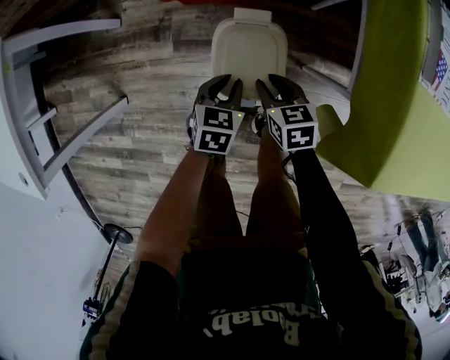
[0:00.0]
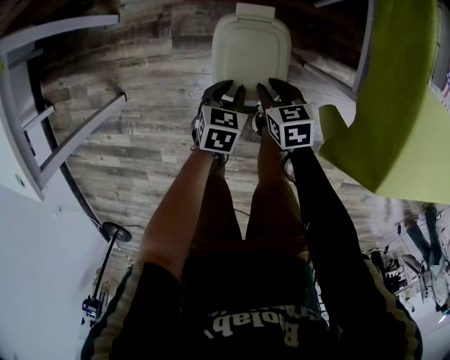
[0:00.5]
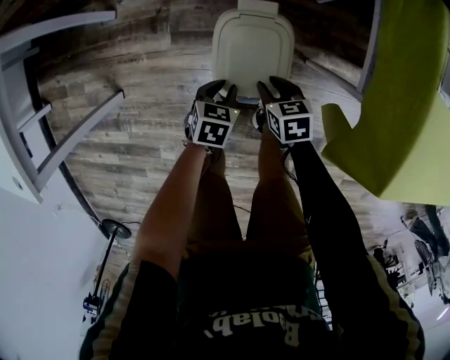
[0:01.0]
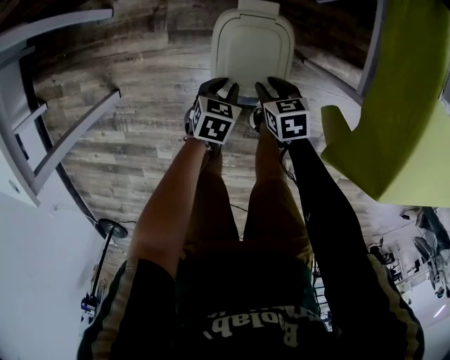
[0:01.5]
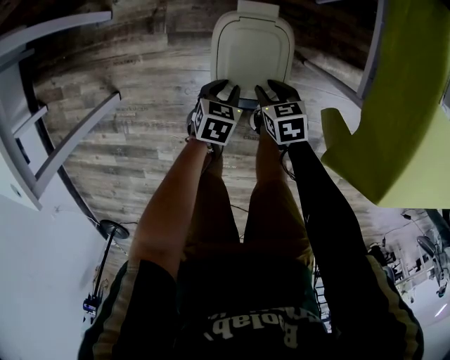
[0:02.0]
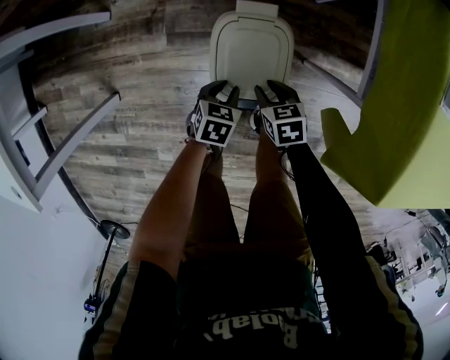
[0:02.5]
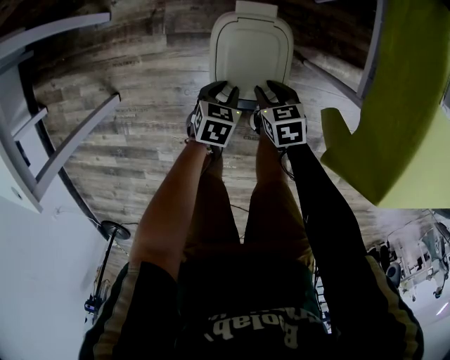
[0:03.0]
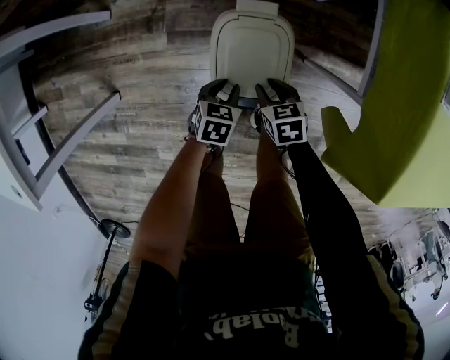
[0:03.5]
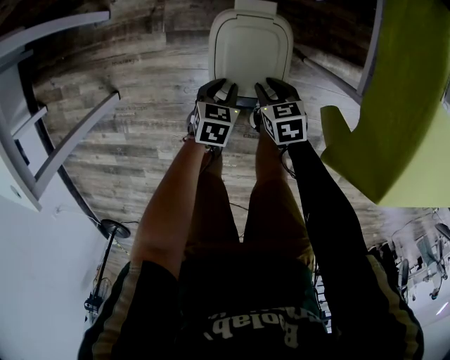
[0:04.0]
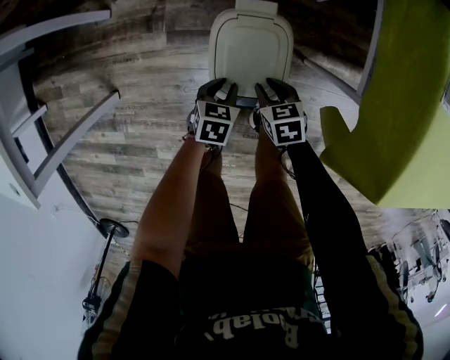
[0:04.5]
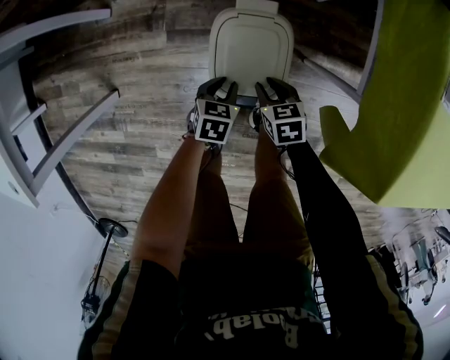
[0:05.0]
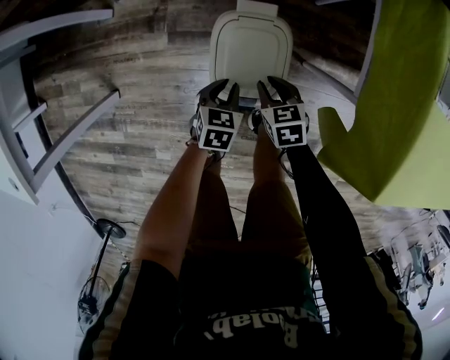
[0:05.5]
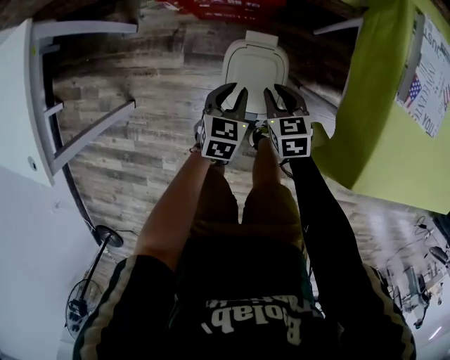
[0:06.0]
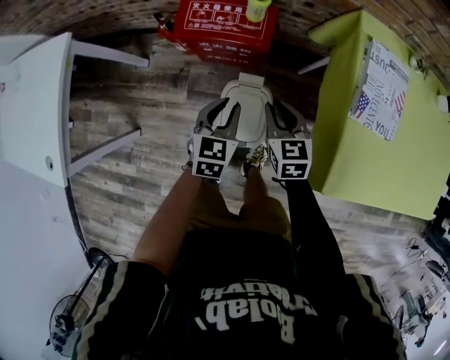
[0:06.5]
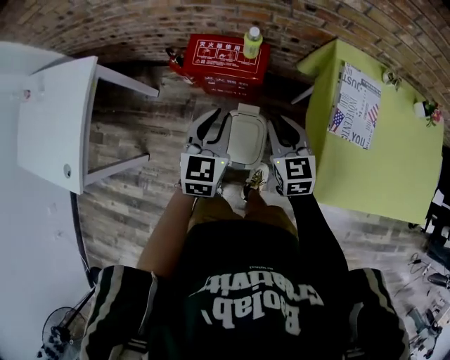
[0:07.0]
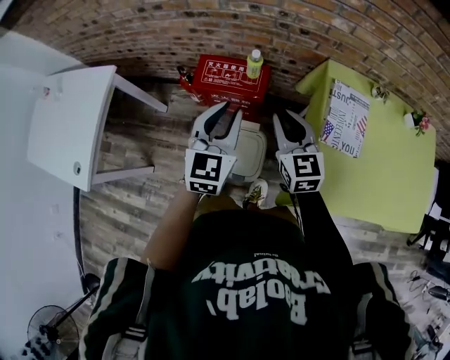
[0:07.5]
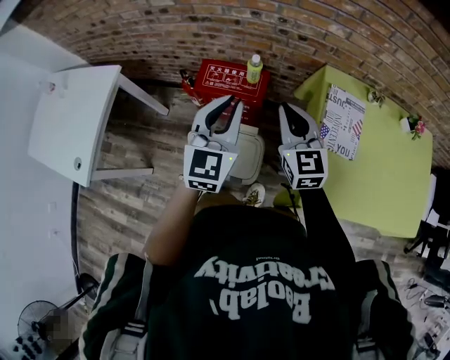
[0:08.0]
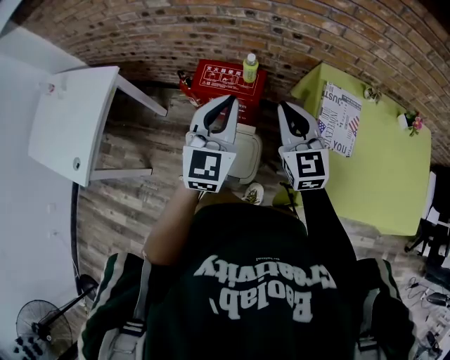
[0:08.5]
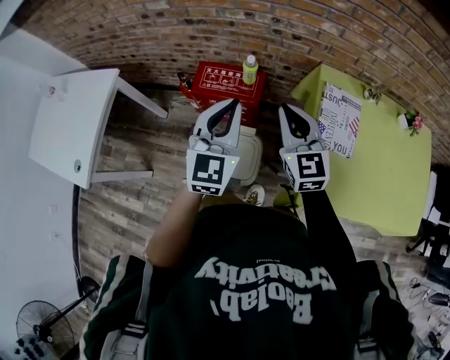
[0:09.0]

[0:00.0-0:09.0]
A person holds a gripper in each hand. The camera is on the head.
0:00.0 to 0:02.0: Both grippers travel together downward, approximately 10 cm.
0:02.0 to 0:04.5: Neither gripper changes place.
0:04.5 to 0:07.0: The two grippers go roughly 50 cm upward. The right gripper tips its fingers upward by about 30 degrees, while the left gripper points its fingers approximately 40 degrees further upward.
0:07.0 to 0:09.0: The two grippers go about 15 cm upward. The right gripper turns by roughly 20 degrees; the left gripper rotates some 20 degrees.

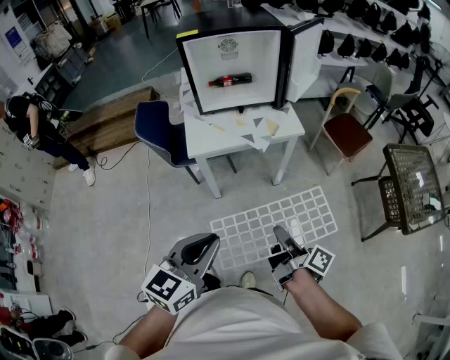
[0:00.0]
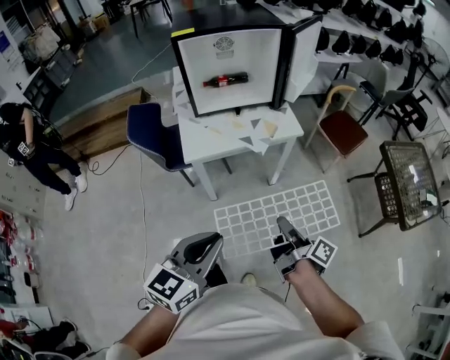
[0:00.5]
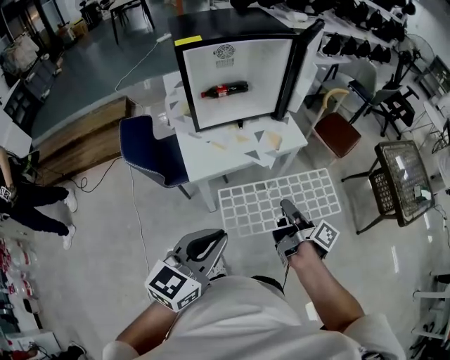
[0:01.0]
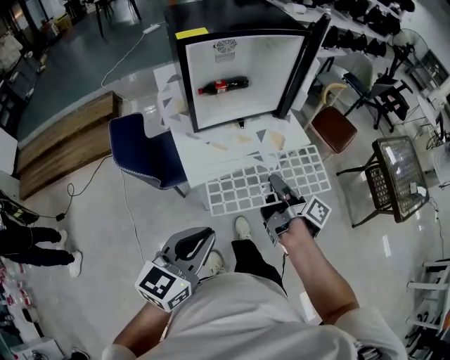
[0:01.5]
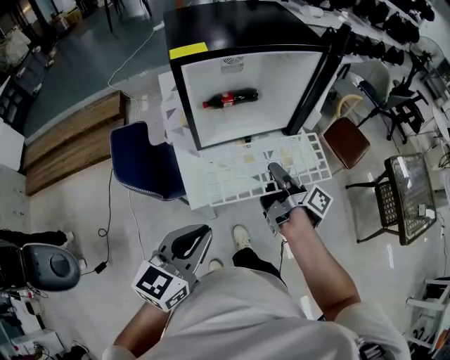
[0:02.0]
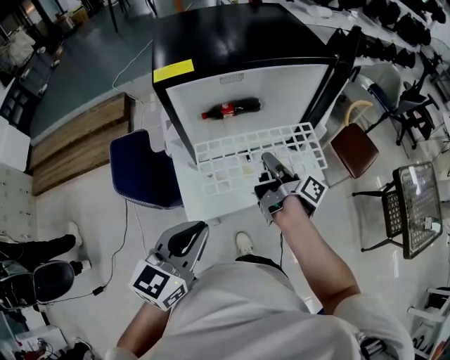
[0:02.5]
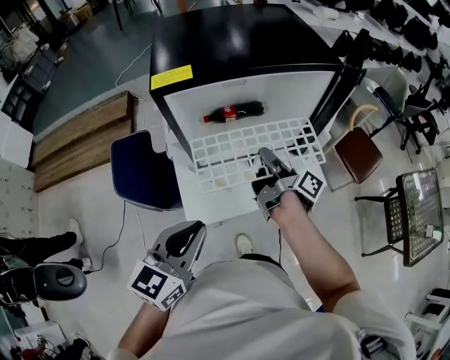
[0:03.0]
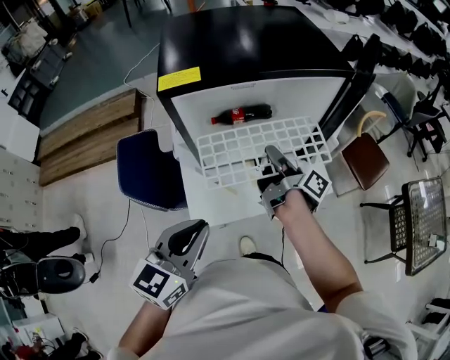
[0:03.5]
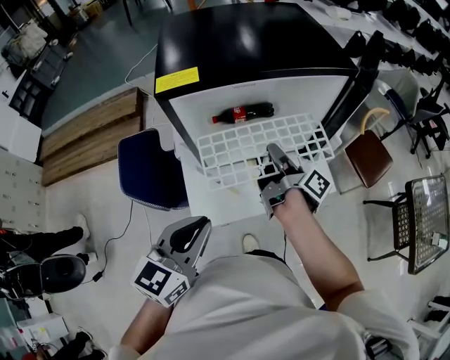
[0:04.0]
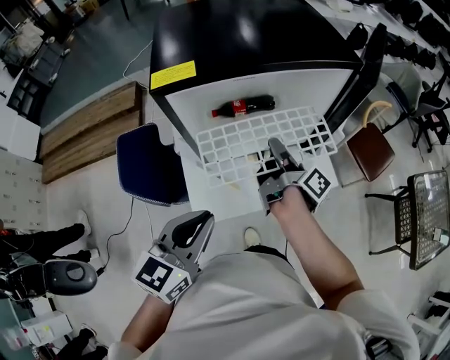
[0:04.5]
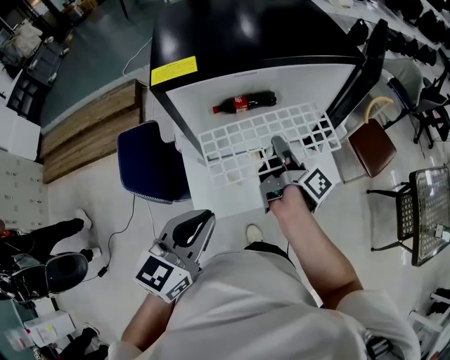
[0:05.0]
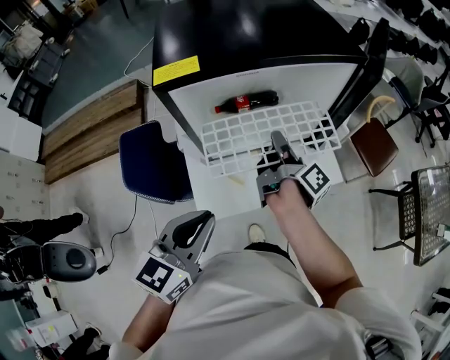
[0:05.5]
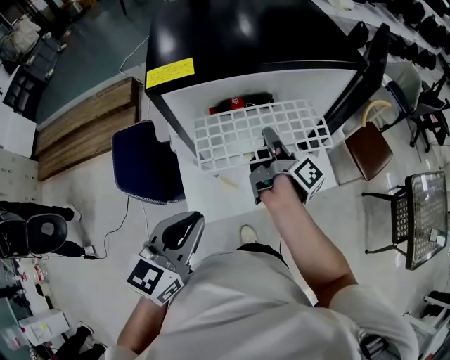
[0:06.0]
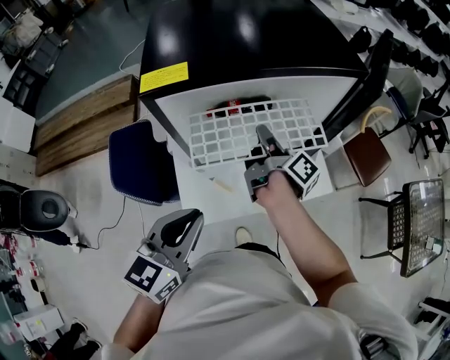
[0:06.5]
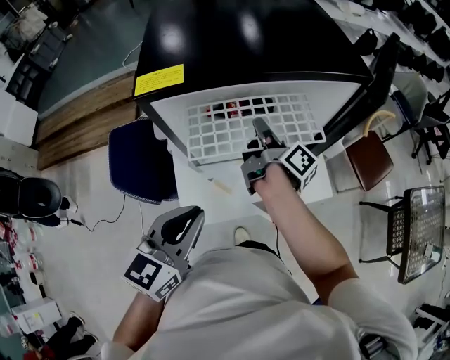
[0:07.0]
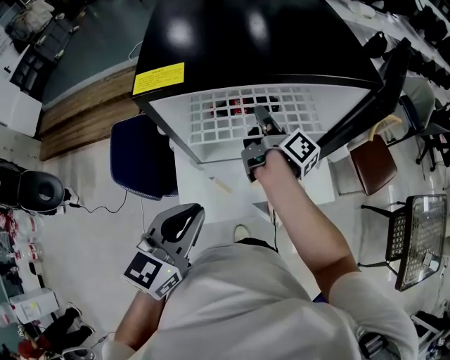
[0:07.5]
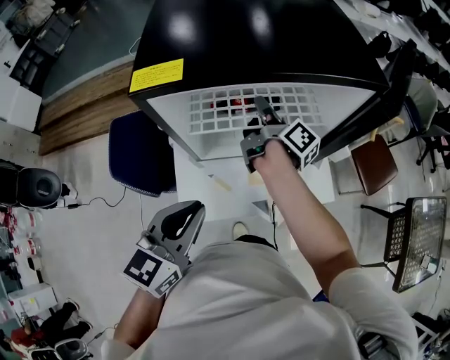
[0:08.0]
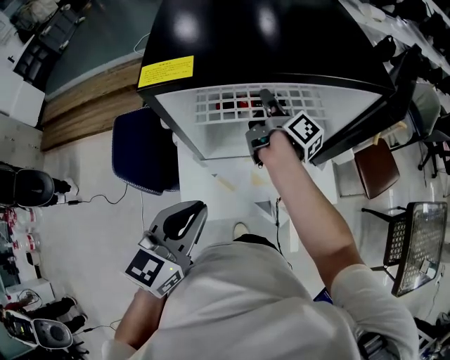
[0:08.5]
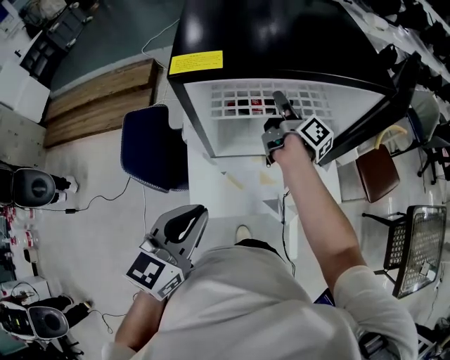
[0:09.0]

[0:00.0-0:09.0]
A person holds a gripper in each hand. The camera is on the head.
0:00.0 to 0:02.0: The left gripper moves about 30 cm.
0:02.0 to 0:04.5: The left gripper ends up roughly 15 cm from where it was.

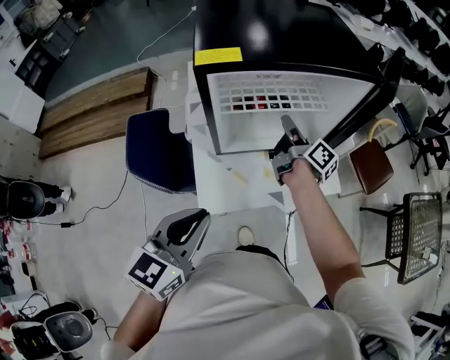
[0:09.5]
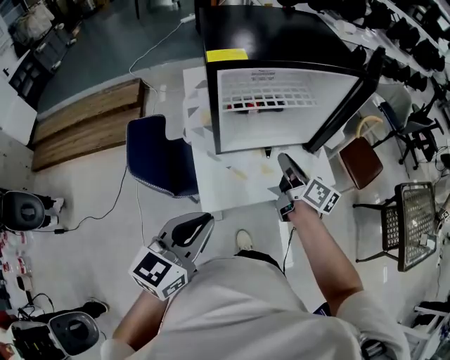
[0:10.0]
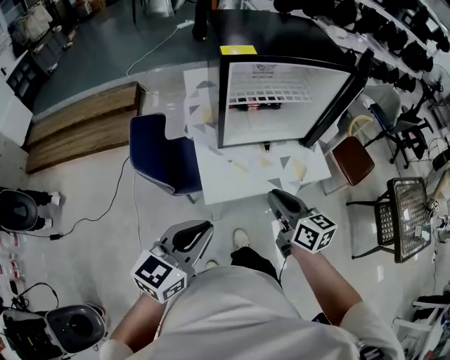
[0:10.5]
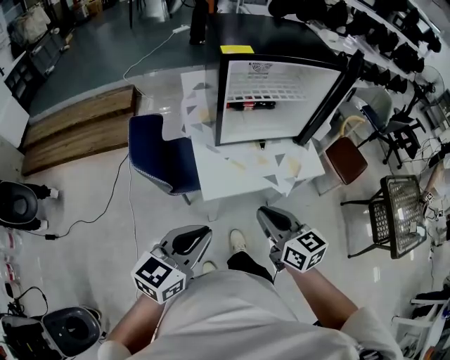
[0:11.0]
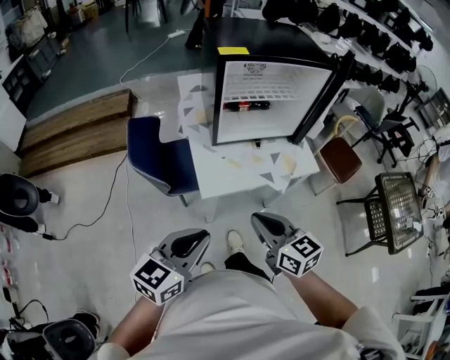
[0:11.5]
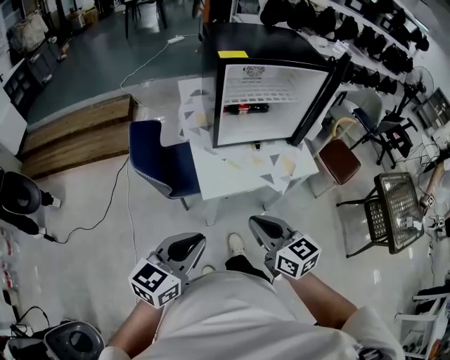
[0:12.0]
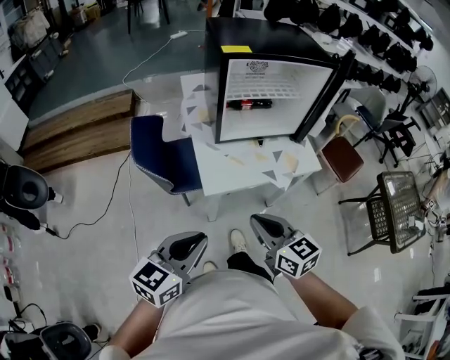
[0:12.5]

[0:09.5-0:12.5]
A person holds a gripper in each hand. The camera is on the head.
0:09.5 to 0:11.0: The left gripper changes place by roughly 15 cm.
0:11.0 to 0:12.5: The left gripper changes place by approximately 5 cm.

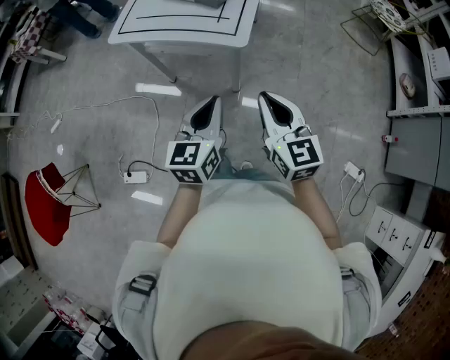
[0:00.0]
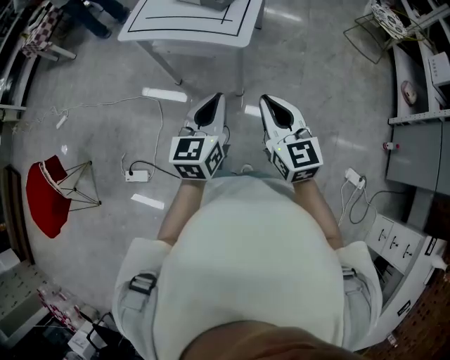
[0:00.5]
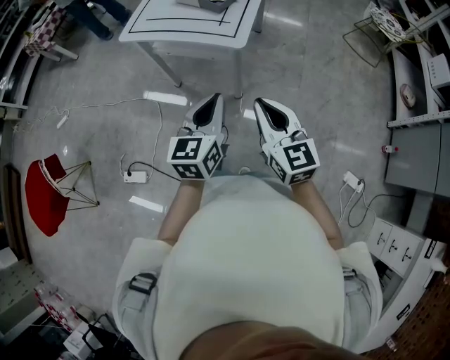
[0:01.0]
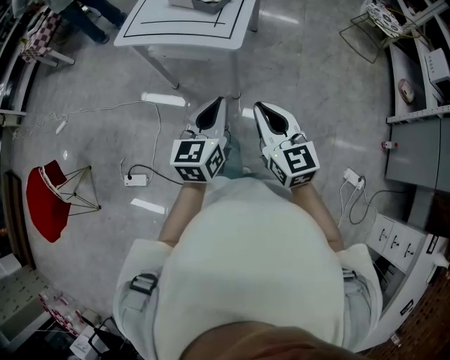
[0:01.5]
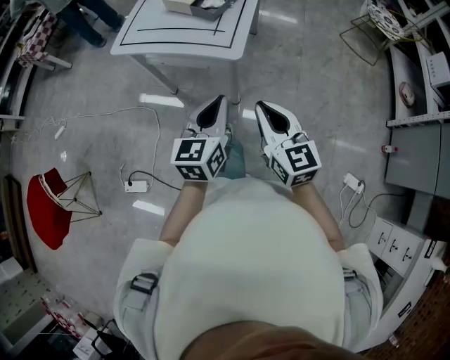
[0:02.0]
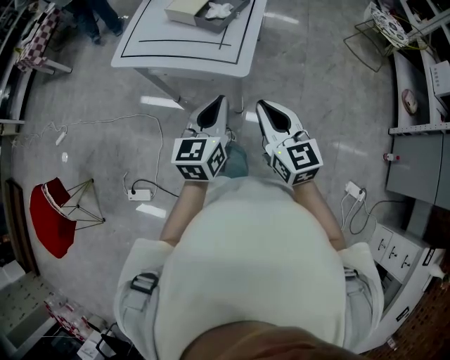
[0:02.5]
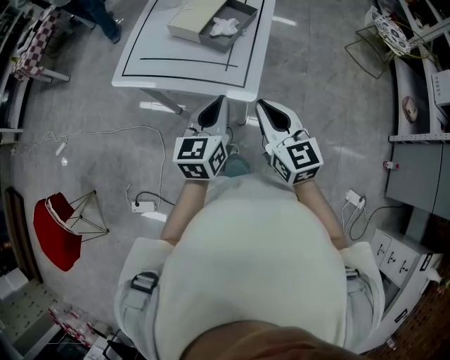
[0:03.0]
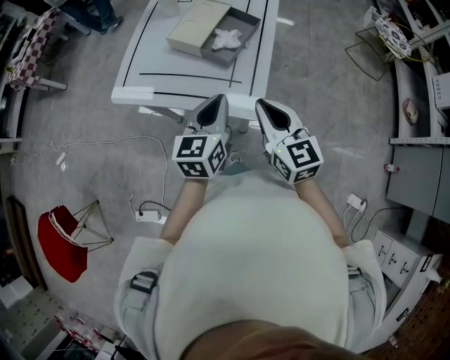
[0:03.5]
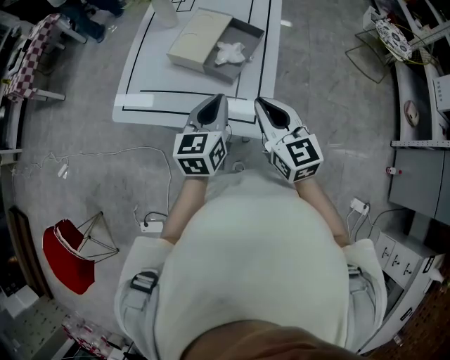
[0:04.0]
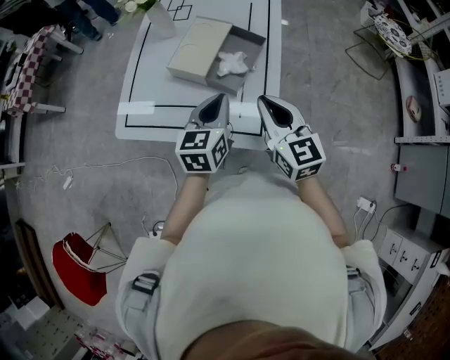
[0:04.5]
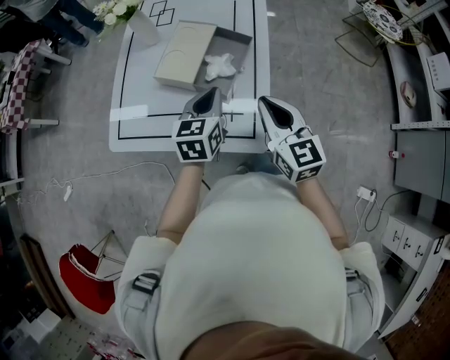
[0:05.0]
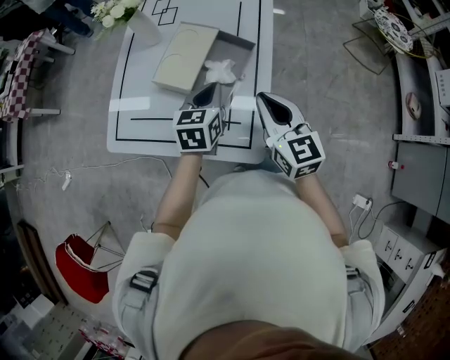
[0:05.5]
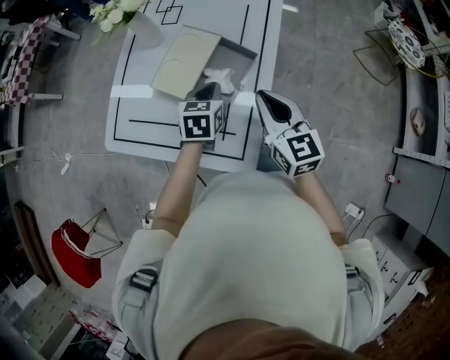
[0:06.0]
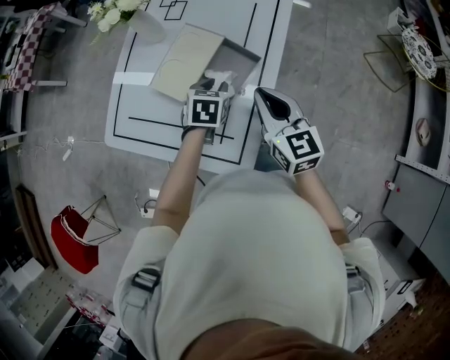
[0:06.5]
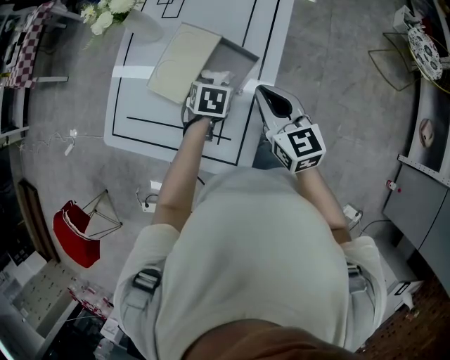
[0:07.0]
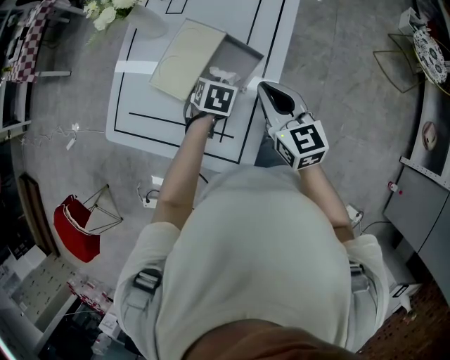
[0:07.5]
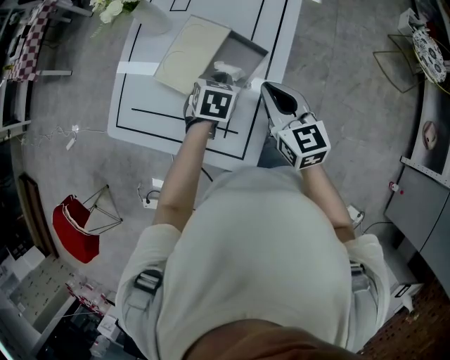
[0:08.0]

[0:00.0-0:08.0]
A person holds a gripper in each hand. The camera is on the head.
0:00.0 to 0:02.0: The grippers move only a little.
0:02.0 to 0:04.0: Both grippers travel together forward, roughly 30 cm.
0:04.0 to 0:06.0: The right gripper is displaced forward by roughly 15 cm, while the left gripper goes approximately 20 cm forward and downward, and swivels approximately 20 degrees.
0:06.0 to 0:08.0: The left gripper opens, then closes once more.
